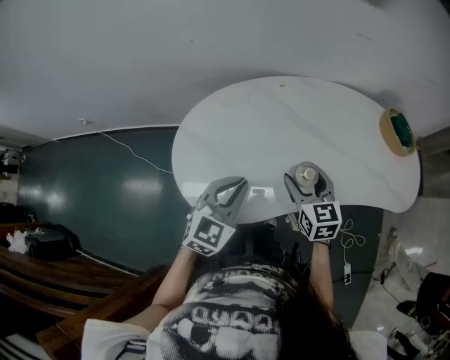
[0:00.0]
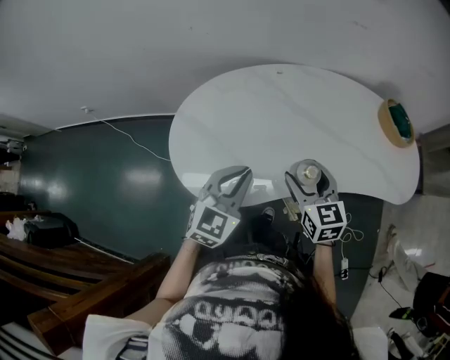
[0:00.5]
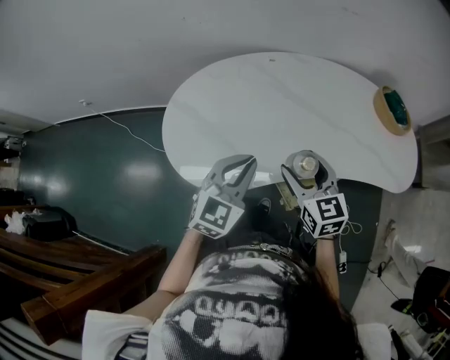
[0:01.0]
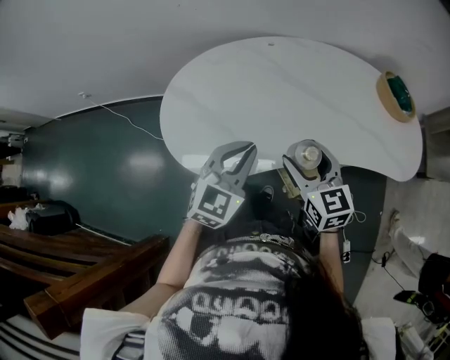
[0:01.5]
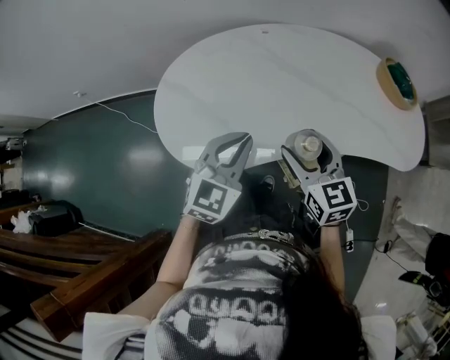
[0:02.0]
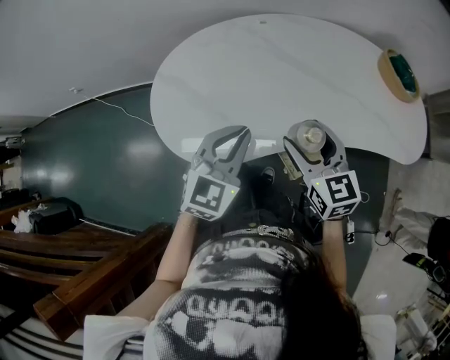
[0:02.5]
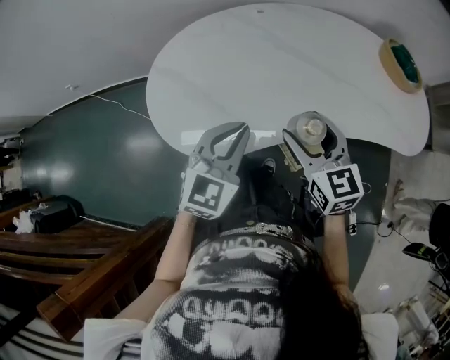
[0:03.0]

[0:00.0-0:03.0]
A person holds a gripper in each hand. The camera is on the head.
0:00.0 to 0:01.5: The left gripper heads to the right, covering roughly 10 cm. Meanwhile the right gripper goes approximately 10 cm backward.
0:01.5 to 0:03.0: Neither gripper changes place.

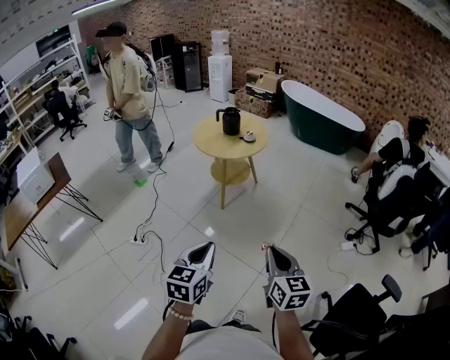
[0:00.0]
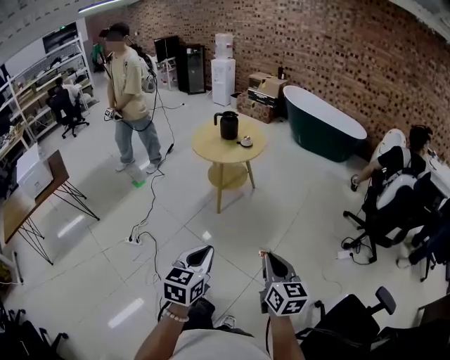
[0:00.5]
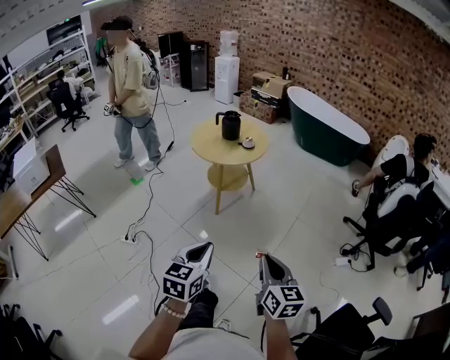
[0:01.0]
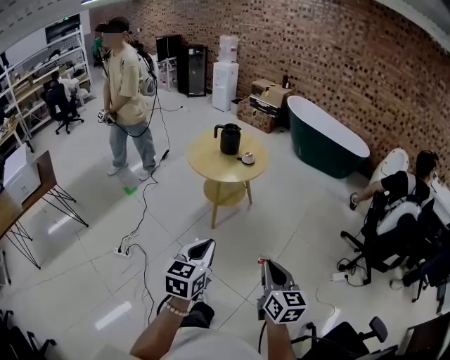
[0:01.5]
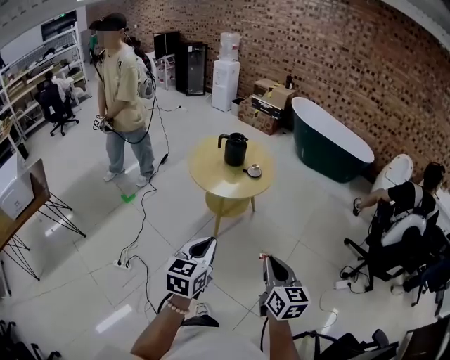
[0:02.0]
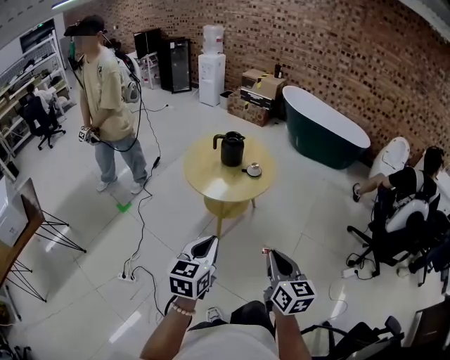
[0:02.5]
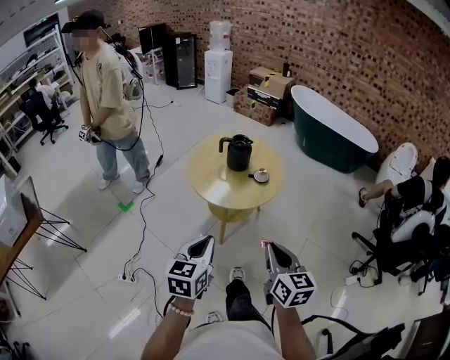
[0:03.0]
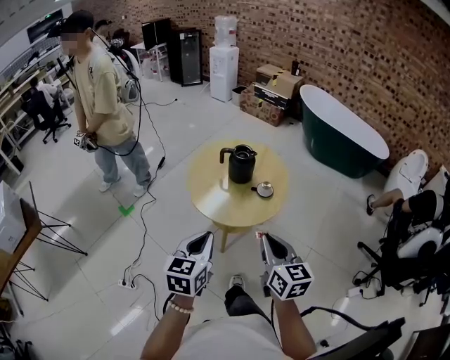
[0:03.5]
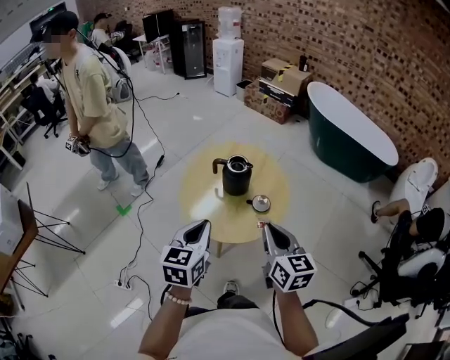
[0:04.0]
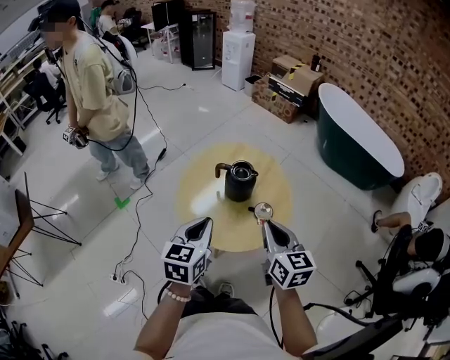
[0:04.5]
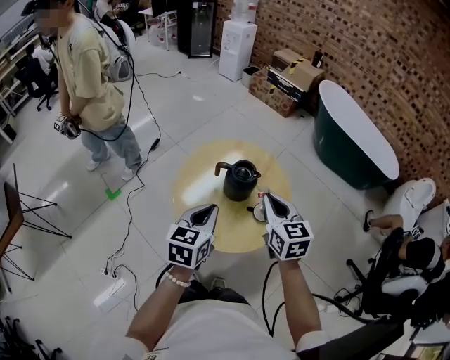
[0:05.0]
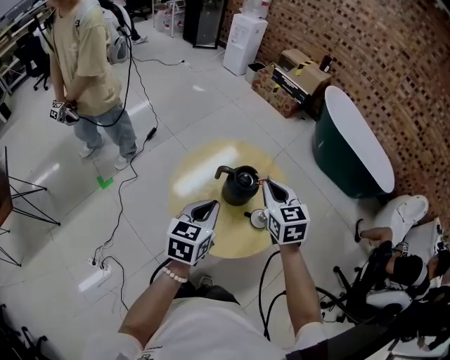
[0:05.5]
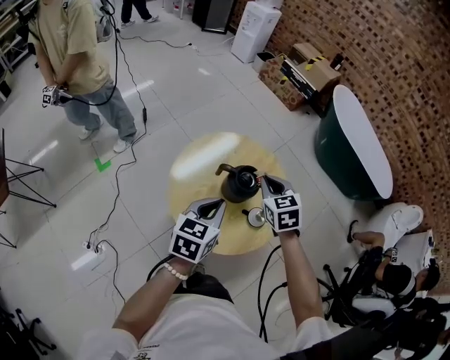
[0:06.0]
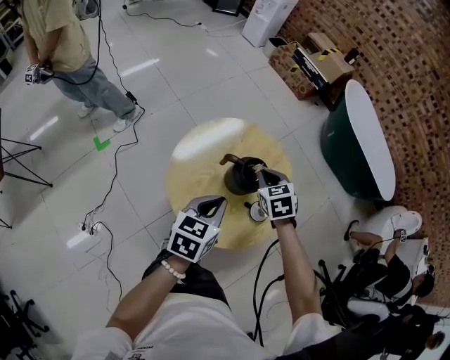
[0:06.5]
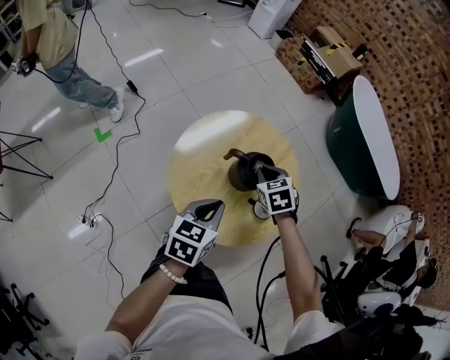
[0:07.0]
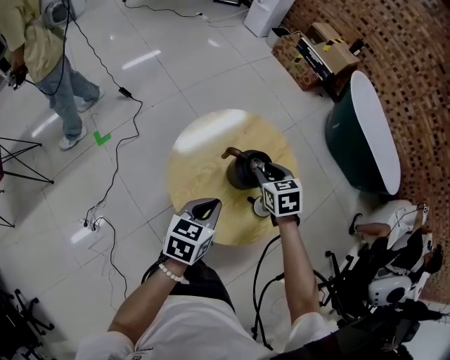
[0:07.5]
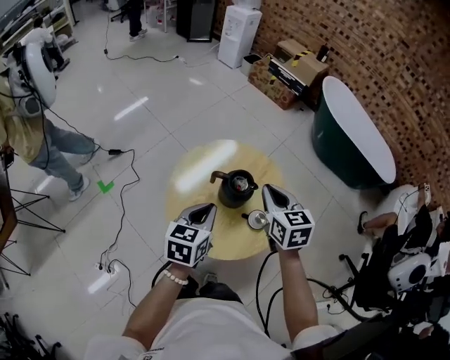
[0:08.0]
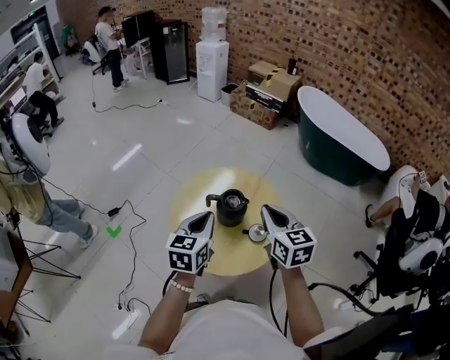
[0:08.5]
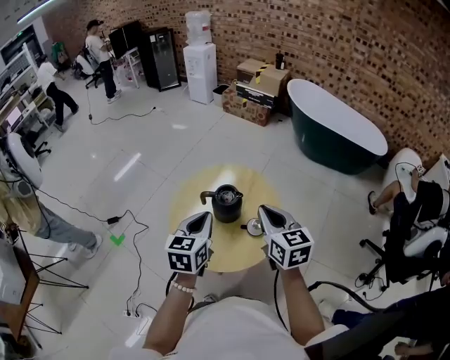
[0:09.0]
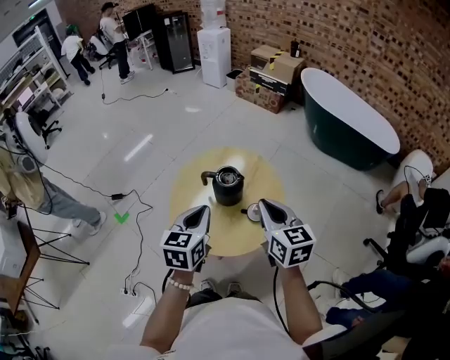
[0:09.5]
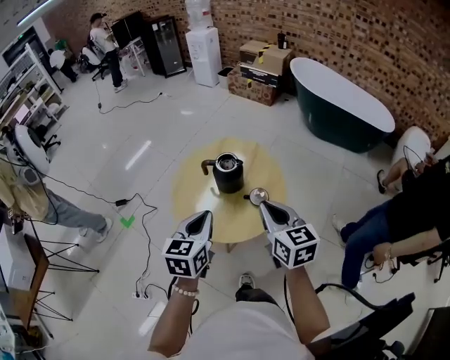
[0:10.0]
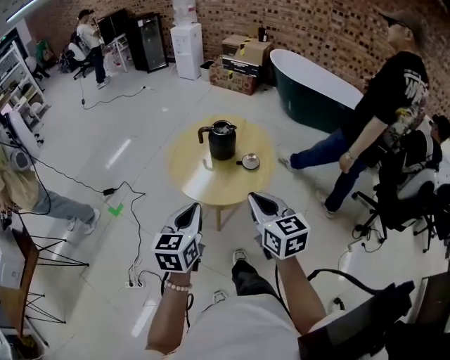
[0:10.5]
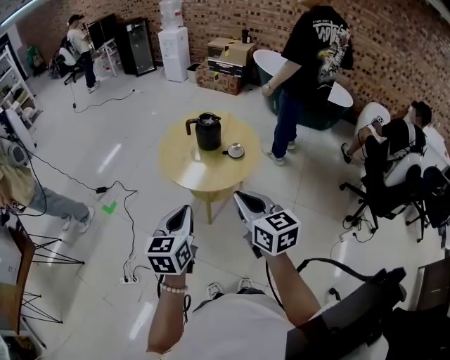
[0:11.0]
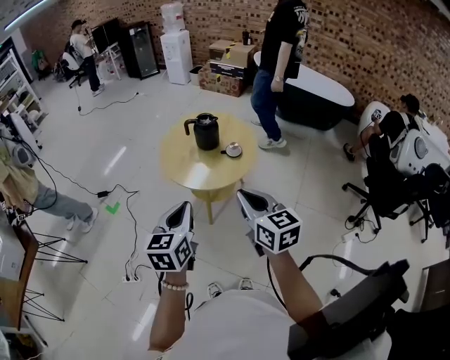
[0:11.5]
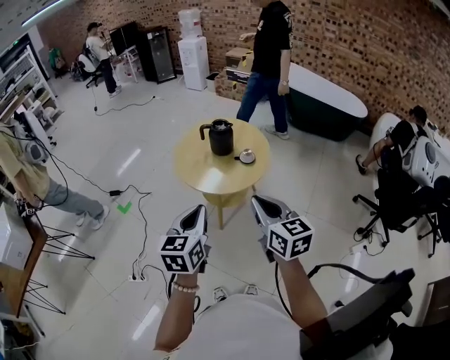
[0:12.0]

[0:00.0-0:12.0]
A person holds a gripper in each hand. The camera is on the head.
0:00.0 to 0:02.0: The two grippers go approximately 30 cm forward.
0:02.0 to 0:04.0: The grippers both shift forward by roughly 40 cm.
0:04.0 to 0:06.0: The left gripper goes roughly 15 cm forward, while the right gripper moves forward, roughly 30 cm, and turns by about 40 degrees.
0:06.0 to 0:08.0: The right gripper moves some 10 cm downward and comes back, rotates about 20 degrees, and opens, then closes again.
0:08.0 to 0:10.0: The right gripper shifts approximately 20 cm backward. The left gripper travels backward by roughly 10 cm.
0:10.0 to 0:12.0: Both grippers travel together backward, about 25 cm.

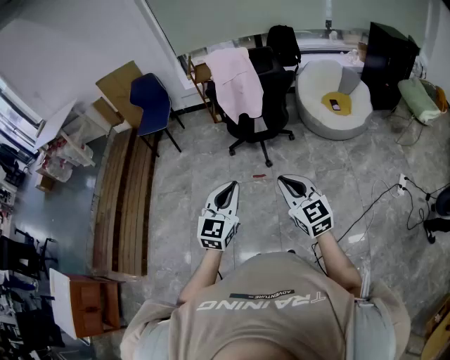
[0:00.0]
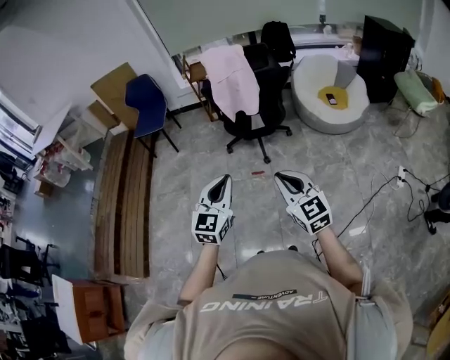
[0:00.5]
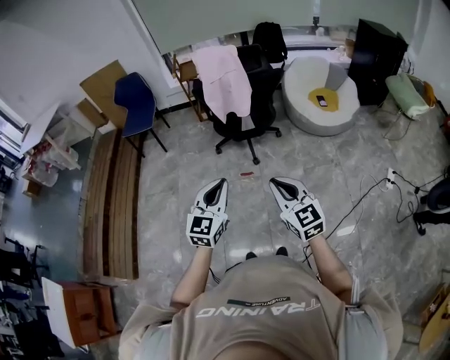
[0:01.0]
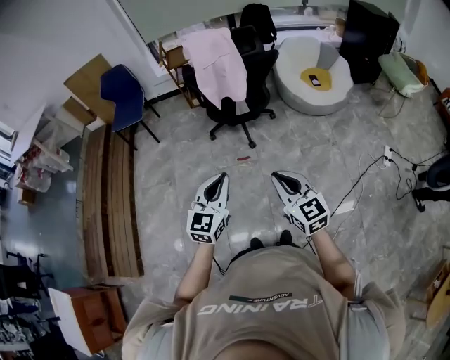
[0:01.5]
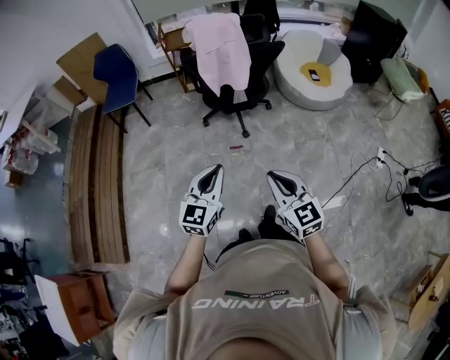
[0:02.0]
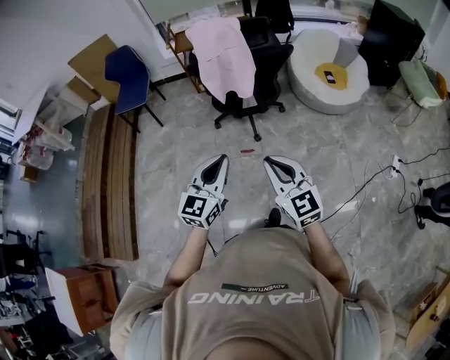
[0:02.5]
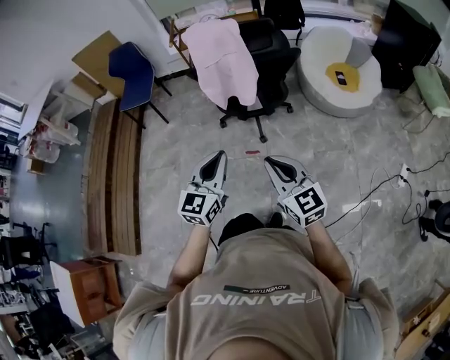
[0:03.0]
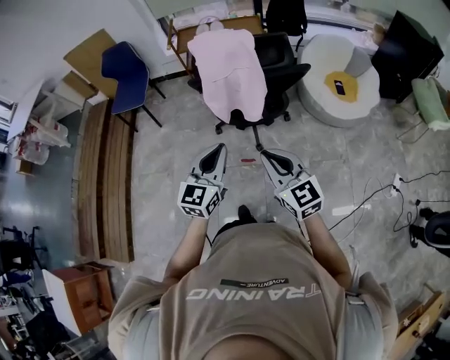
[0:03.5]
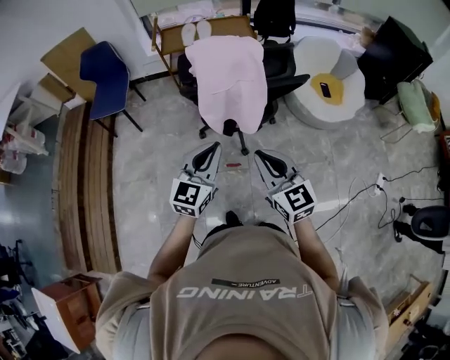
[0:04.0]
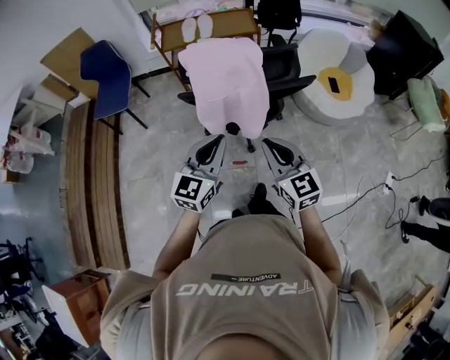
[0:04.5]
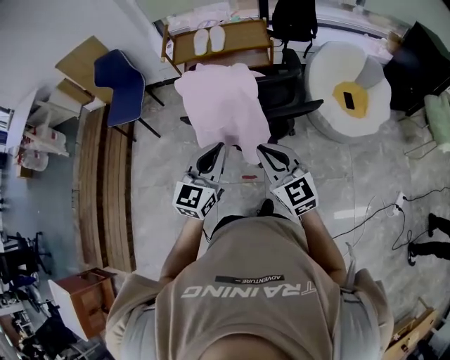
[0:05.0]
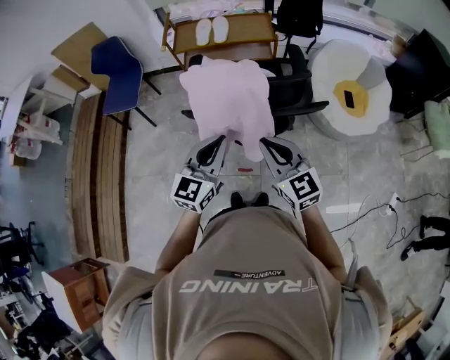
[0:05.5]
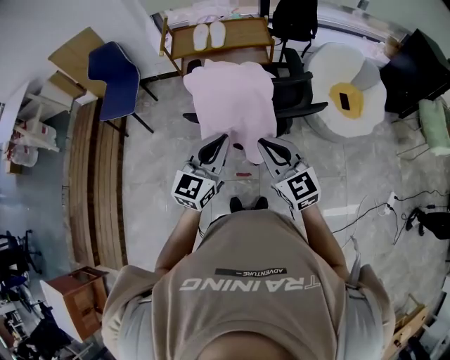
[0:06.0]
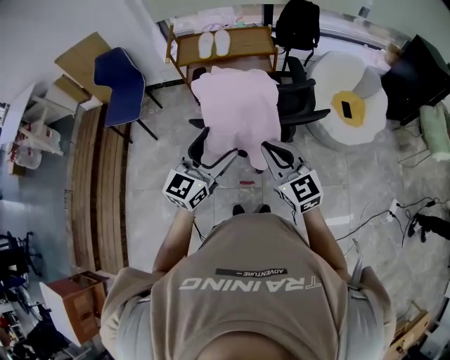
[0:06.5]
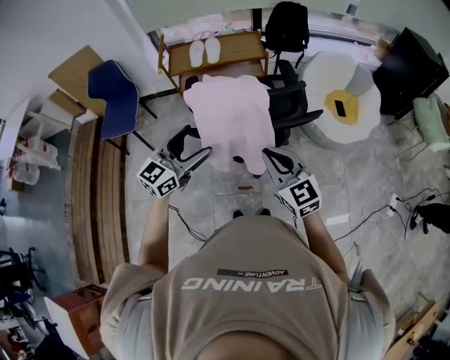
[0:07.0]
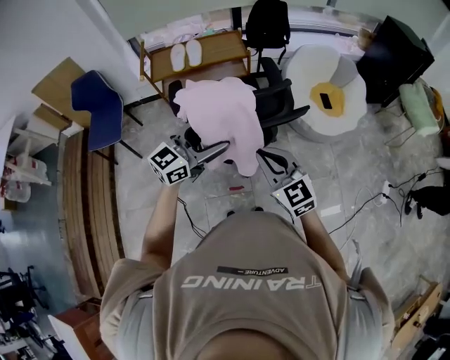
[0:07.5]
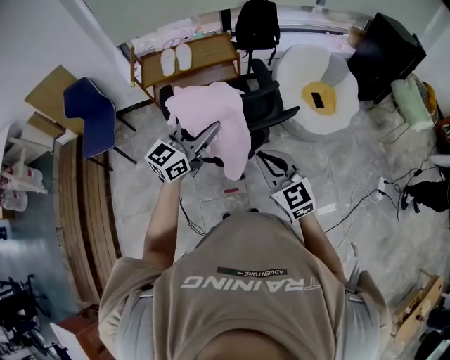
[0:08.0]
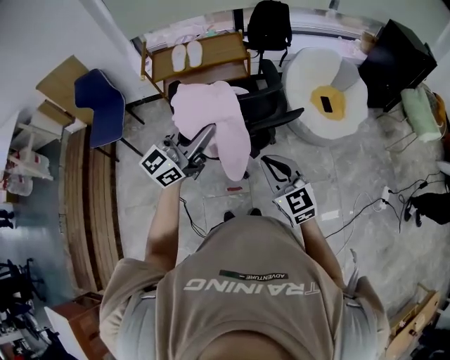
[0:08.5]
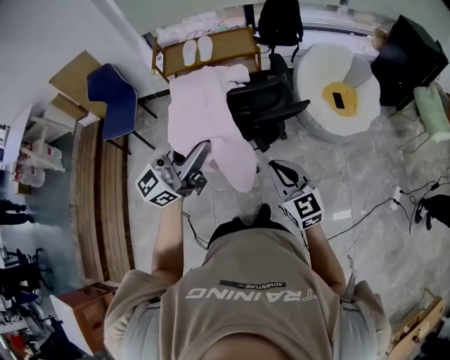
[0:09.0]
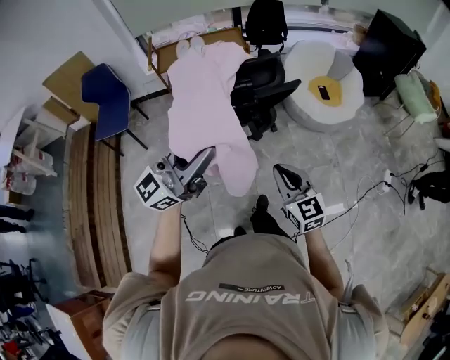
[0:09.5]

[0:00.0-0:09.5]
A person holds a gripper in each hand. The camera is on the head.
0:00.0 to 0:02.0: The right gripper changes place by roughly 5 cm; the left gripper ends up approximately 10 cm from where it was.
0:02.0 to 0:04.0: Both grippers travel together forward, some 30 cm.
0:04.0 to 0:05.5: Both grippers travel together forward, approximately 15 cm.
0:05.5 to 0:07.5: The left gripper goes some 5 cm forward, travels to the left and back again, some 10 cm each way, swivels roughly 30 degrees, and opens up.
0:07.5 to 0:09.5: The right gripper heads backward and to the right, covering roughly 20 cm, while the left gripper goes about 25 cm backward and upward, swivels some 20 degrees, and closes.

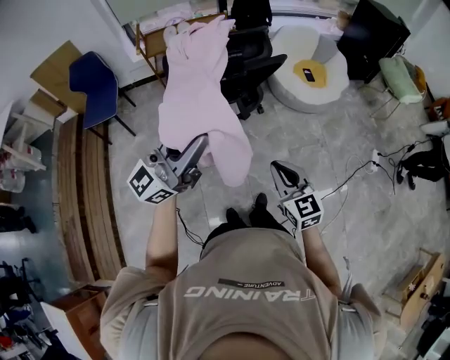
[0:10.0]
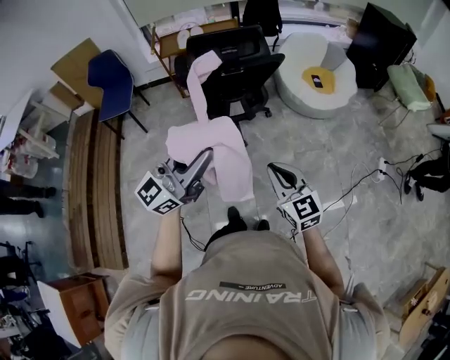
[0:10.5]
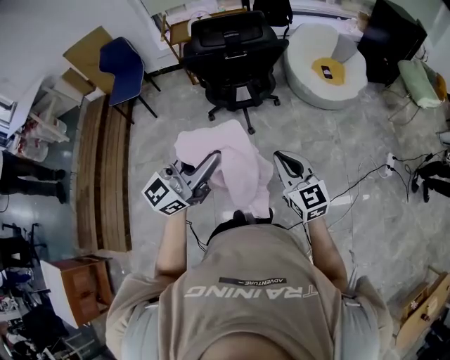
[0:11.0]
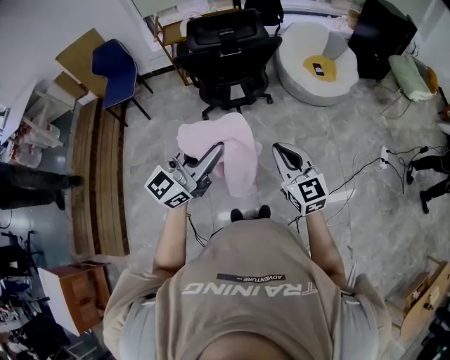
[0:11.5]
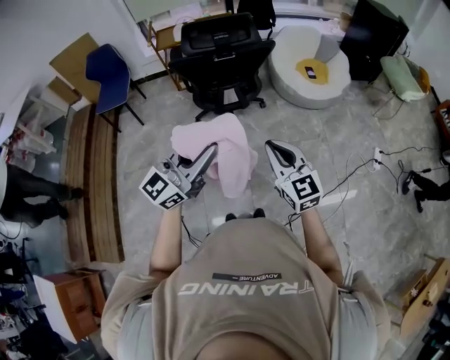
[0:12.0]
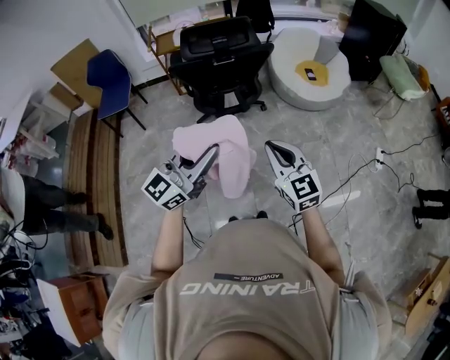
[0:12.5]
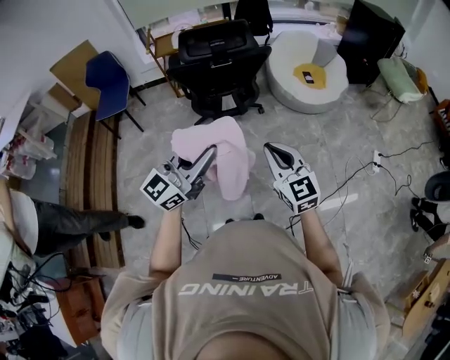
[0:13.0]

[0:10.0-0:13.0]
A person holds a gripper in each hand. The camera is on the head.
0:10.0 to 0:11.5: The right gripper is displaced backward and to the right by approximately 10 cm, while the left gripper is displaced backward and to the right by some 15 cm.
0:11.5 to 0:13.0: The grippers stay close to where they were, moving slightly.
